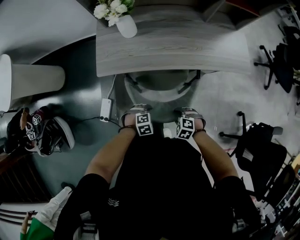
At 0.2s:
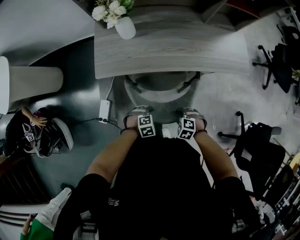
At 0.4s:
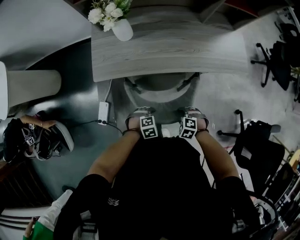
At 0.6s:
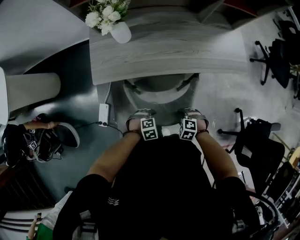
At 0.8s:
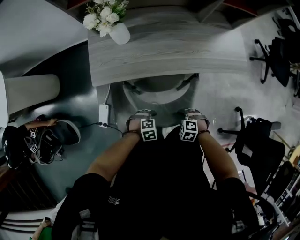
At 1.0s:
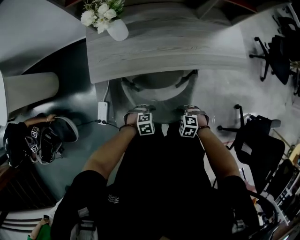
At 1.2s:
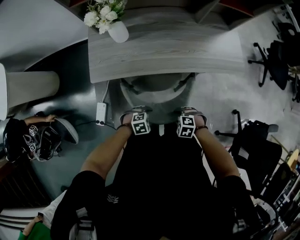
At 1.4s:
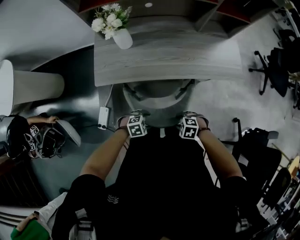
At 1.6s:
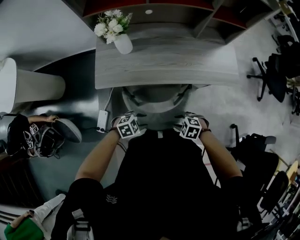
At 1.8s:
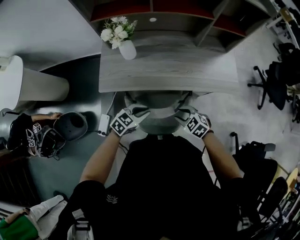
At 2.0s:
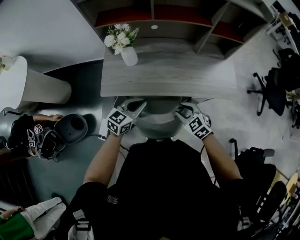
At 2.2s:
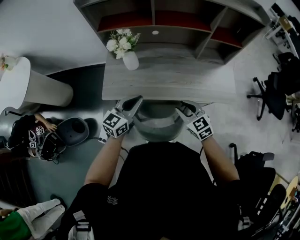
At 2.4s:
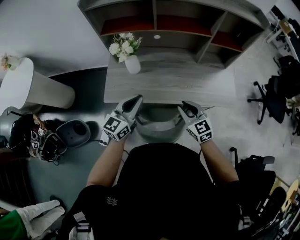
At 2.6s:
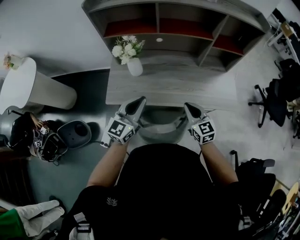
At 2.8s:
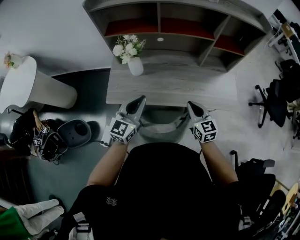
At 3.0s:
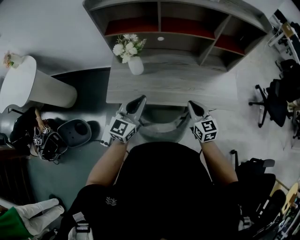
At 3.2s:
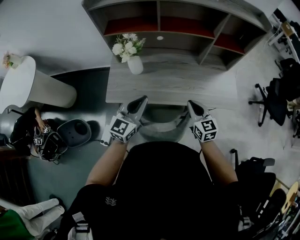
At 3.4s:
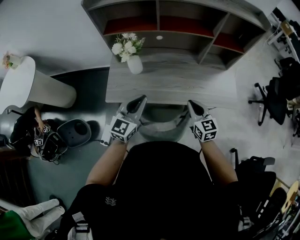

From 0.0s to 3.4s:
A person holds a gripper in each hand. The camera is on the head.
From 0.0s to 1.6s: Both grippers travel together upward, roughly 10 cm. The left gripper rotates approximately 20 degrees.
From 1.6s to 3.4s: The grippers both shift upward by about 25 cm. The left gripper points its fingers some 50 degrees further upward, and closes its fingers; the right gripper angles its fingers upward, by approximately 40 degrees, and closes.

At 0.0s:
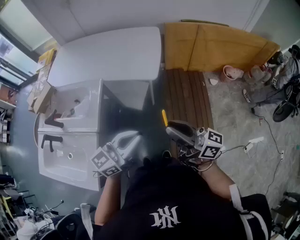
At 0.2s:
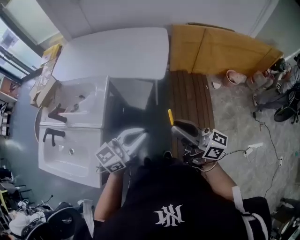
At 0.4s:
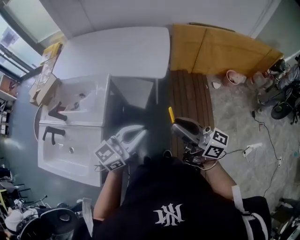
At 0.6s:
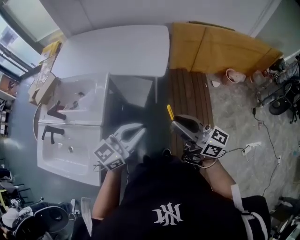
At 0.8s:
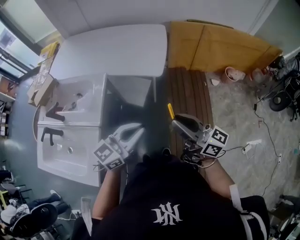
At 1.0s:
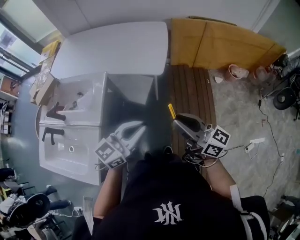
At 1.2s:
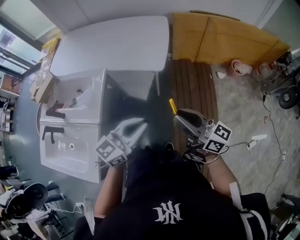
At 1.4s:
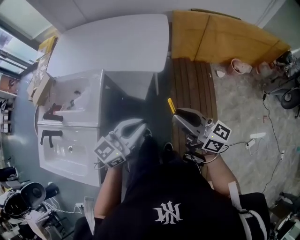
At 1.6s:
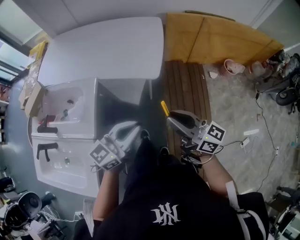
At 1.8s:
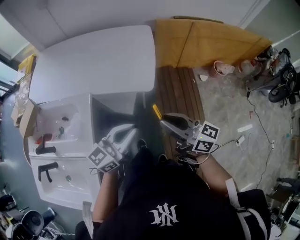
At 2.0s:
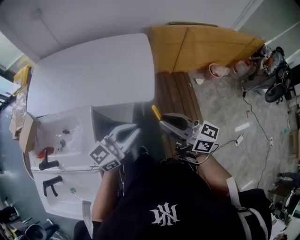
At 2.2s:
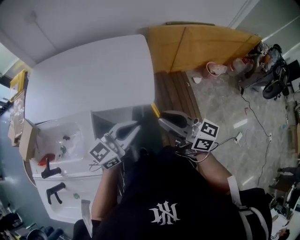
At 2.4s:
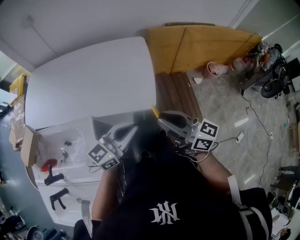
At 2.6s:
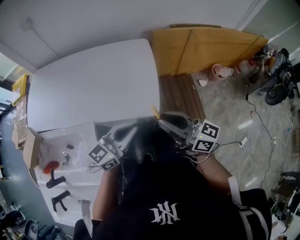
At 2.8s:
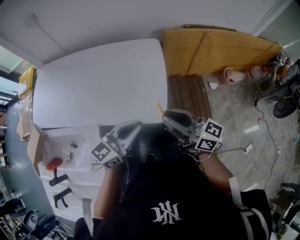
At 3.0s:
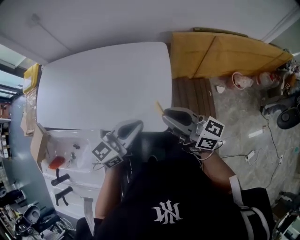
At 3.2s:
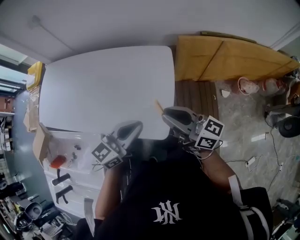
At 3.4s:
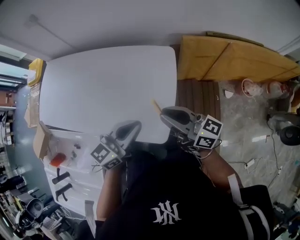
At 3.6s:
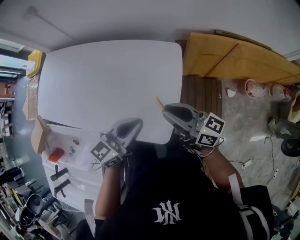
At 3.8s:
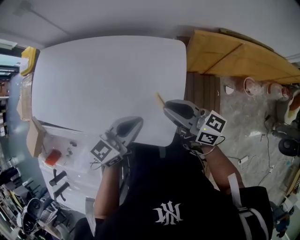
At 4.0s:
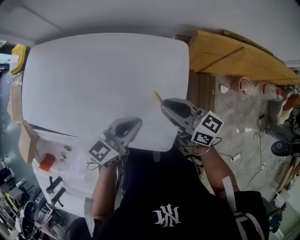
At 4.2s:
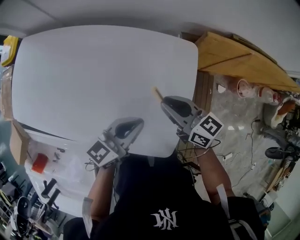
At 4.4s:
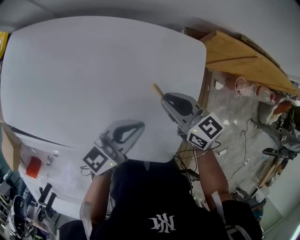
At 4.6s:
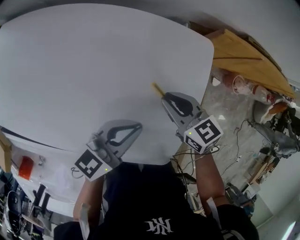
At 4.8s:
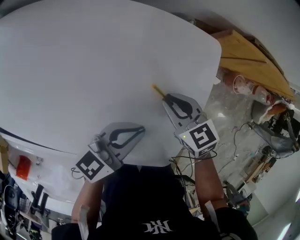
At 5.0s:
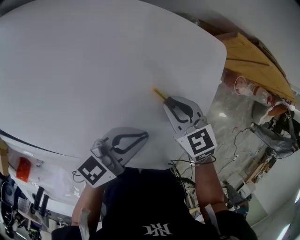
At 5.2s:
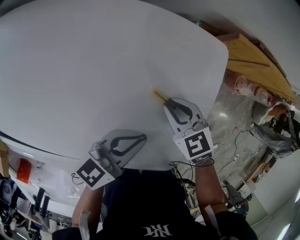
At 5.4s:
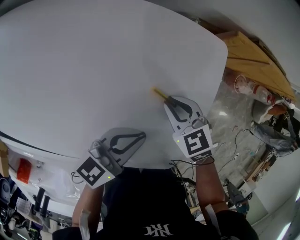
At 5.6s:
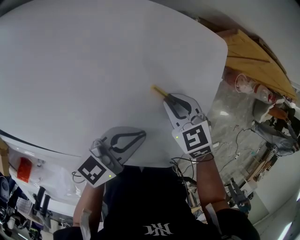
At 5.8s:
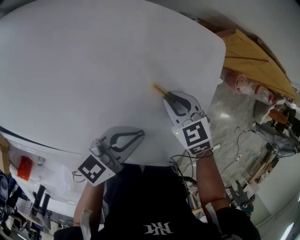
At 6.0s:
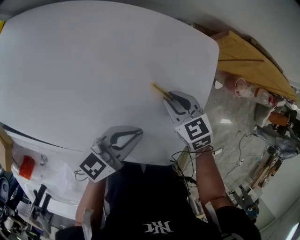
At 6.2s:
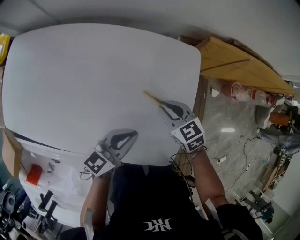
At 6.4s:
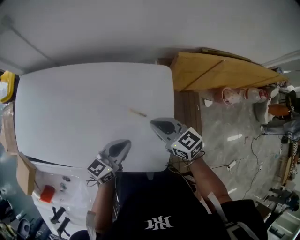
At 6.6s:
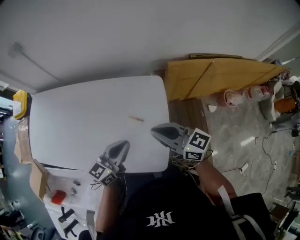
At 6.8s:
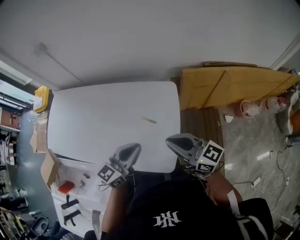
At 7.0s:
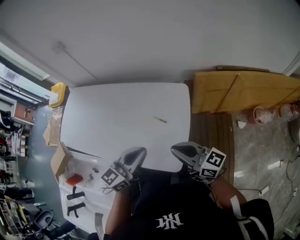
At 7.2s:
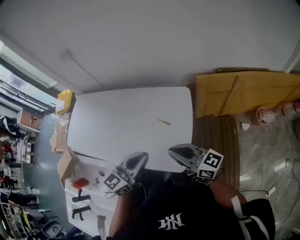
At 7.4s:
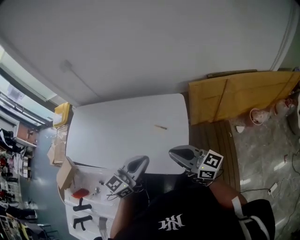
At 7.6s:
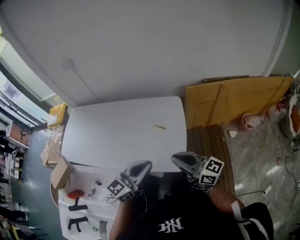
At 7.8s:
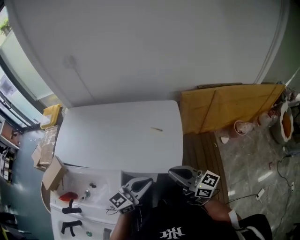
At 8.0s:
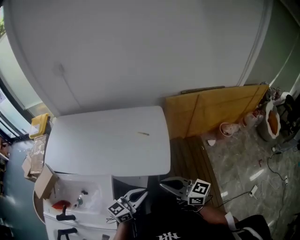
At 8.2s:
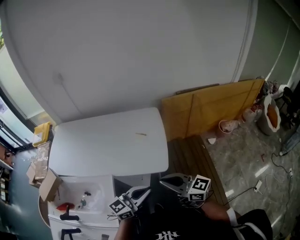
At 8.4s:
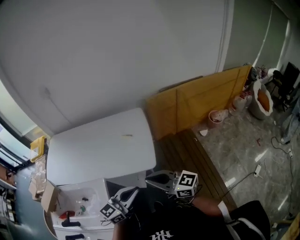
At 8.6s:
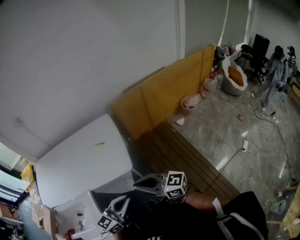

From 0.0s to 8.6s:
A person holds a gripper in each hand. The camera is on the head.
From 0.0s to 1.4s: The left gripper goes roughly 5 cm forward; the right gripper heads forward and downward, covering some 10 cm.
From 1.4s to 2.8s: The two grippers go roughly 35 cm forward.
From 2.8s to 4.4s: The two grippers go roughly 35 cm forward and downward. The right gripper tips its fingers downward by approximately 30 degrees.
From 4.4s to 5.8s: The left gripper heads downward, covering roughly 5 cm. Meanwhile the right gripper heads downward, covering roughly 10 cm, and changes its angle by roughly 30 degrees.
From 5.8s to 7.2s: The grippers both shift upward and backward by some 35 cm. The left gripper swivels about 20 degrees. Meanwhile the right gripper angles its fingers upward, by roughly 60 degrees.
From 7.2s to 8.6s: The two grippers go about 35 cm backward.

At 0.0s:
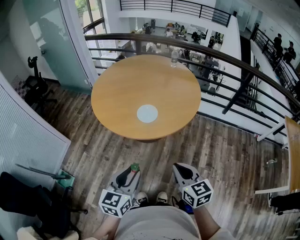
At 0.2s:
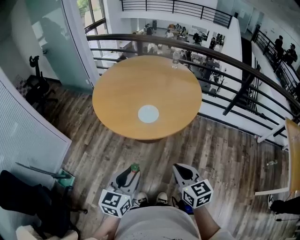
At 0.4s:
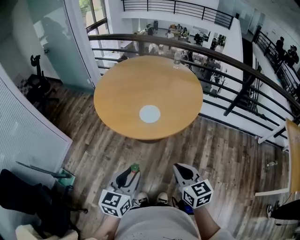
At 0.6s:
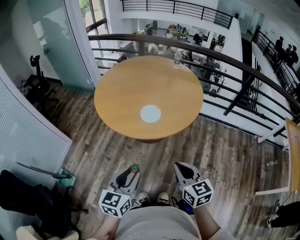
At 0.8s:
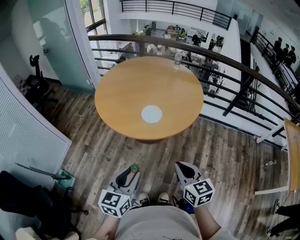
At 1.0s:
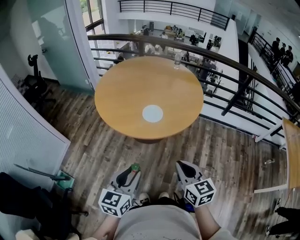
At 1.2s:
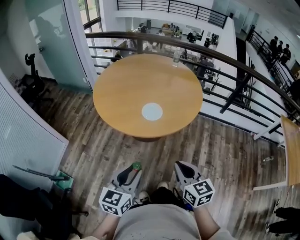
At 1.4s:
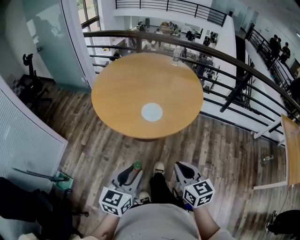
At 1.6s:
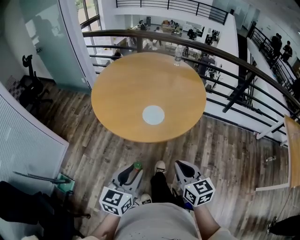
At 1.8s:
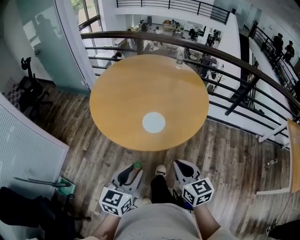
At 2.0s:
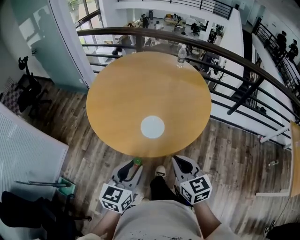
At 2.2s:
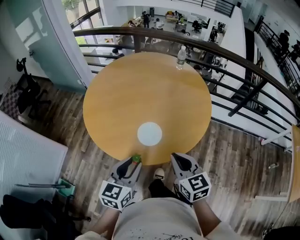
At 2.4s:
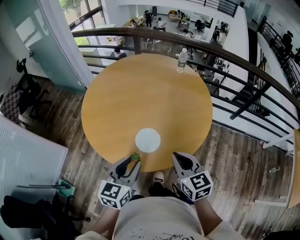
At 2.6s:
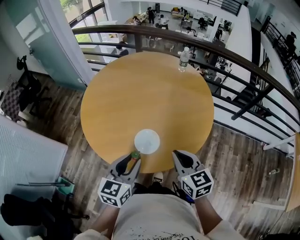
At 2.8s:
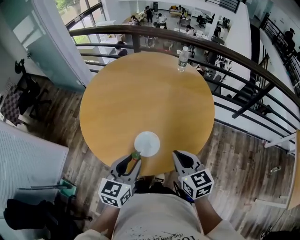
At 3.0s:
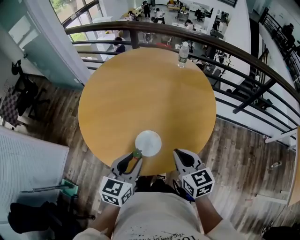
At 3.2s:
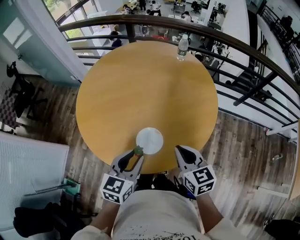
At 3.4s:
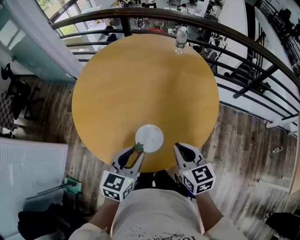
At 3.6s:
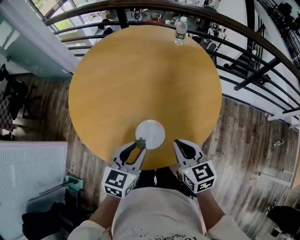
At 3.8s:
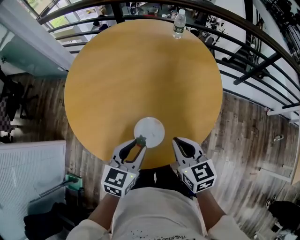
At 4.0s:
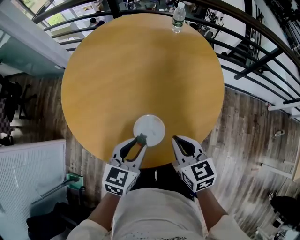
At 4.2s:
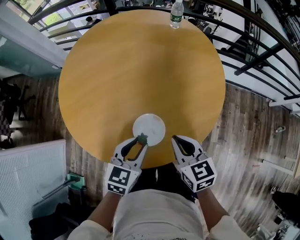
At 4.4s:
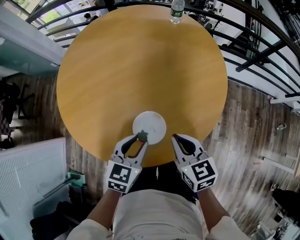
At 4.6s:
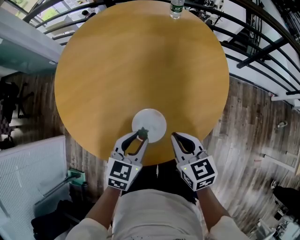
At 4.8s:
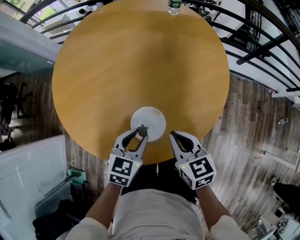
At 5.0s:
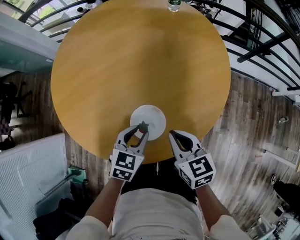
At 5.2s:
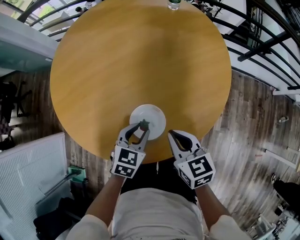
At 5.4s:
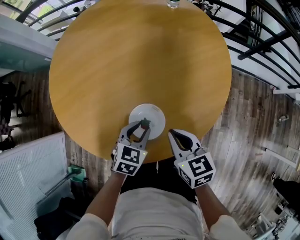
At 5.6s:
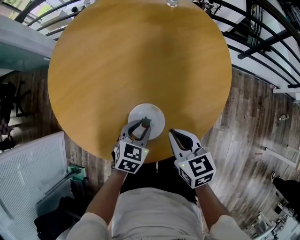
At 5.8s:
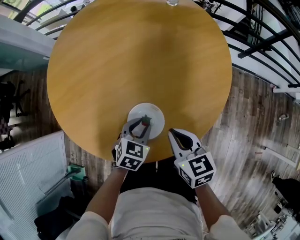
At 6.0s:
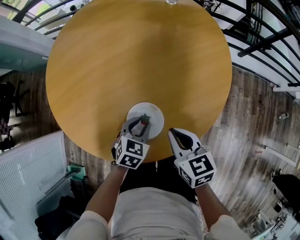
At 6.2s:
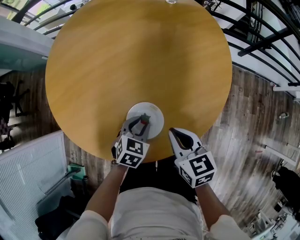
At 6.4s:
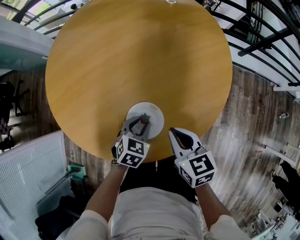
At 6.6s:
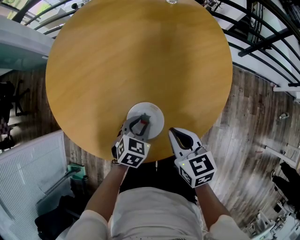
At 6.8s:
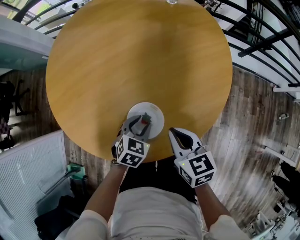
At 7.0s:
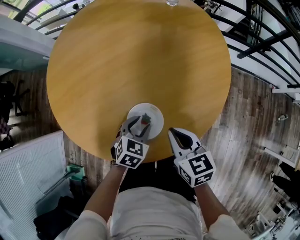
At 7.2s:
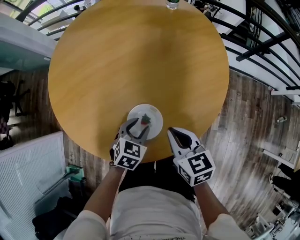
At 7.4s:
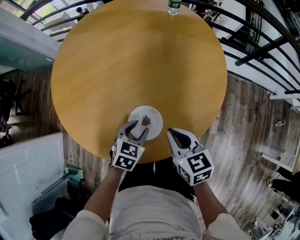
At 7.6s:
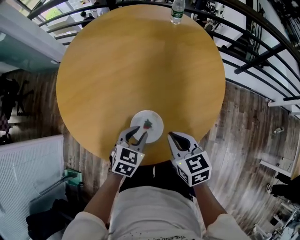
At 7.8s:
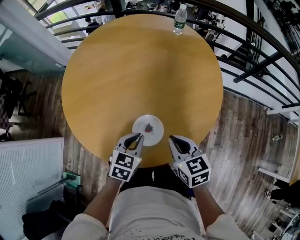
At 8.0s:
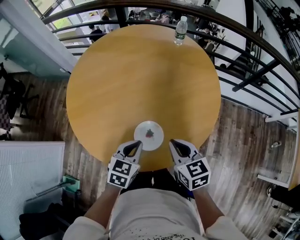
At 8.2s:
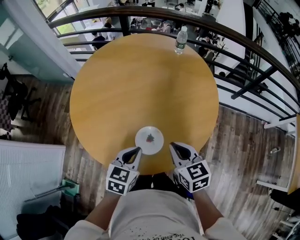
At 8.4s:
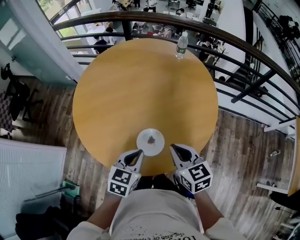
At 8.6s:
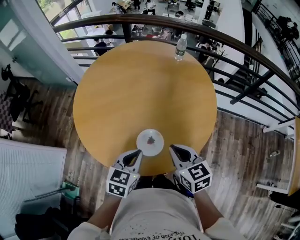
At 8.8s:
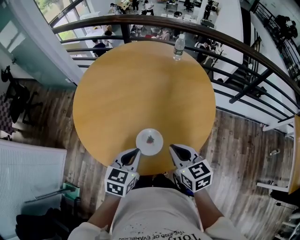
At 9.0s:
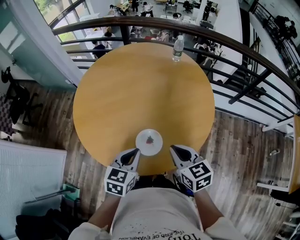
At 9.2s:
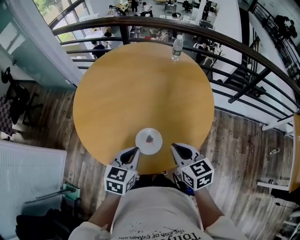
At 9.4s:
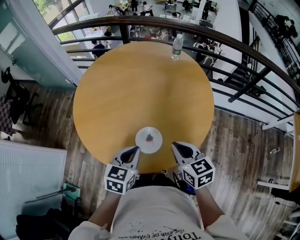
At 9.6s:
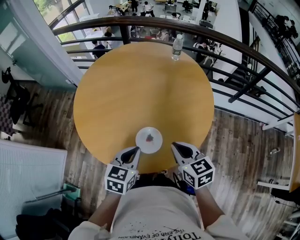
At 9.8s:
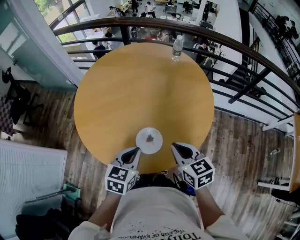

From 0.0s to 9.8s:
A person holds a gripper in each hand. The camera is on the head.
From 0.0s to 1.4s: The two grippers go about 5 cm to the left.
From 1.4s to 2.8s: The grippers both shift forward by about 35 cm.
From 2.8s to 4.2s: Both grippers travel together downward and forward, some 15 cm. The left gripper changes its angle by approximately 20 degrees.
From 4.2s to 5.6s: The left gripper travels downward by some 10 cm, while the right gripper travels downward by approximately 5 cm.
From 5.6s to 7.0s: The grippers make only small movements.
From 7.0s to 8.4s: The left gripper is displaced upward by some 20 cm, turns by roughly 20 degrees, and closes its fingers. The right gripper heads upward, covering approximately 10 cm.
From 8.4s to 9.8s: The grippers make only small movements.

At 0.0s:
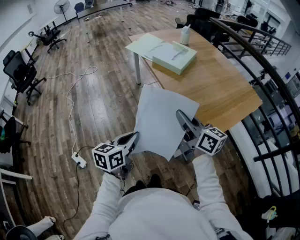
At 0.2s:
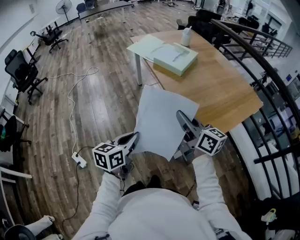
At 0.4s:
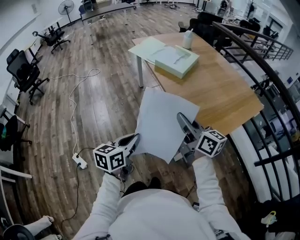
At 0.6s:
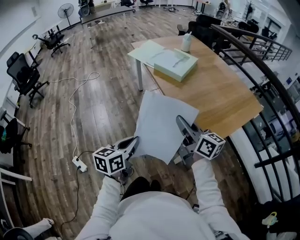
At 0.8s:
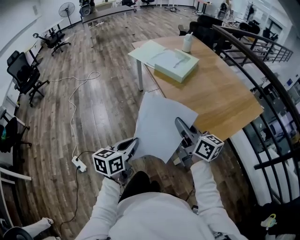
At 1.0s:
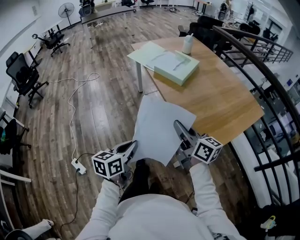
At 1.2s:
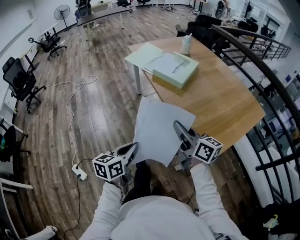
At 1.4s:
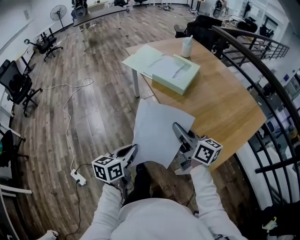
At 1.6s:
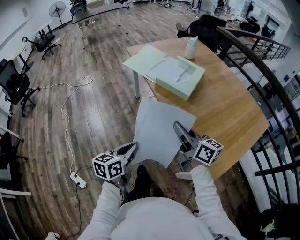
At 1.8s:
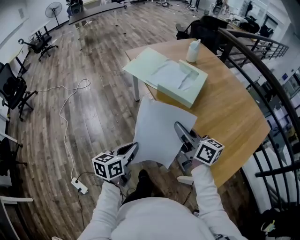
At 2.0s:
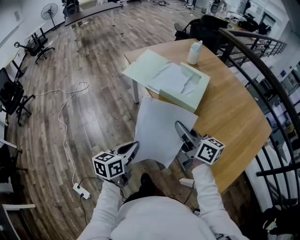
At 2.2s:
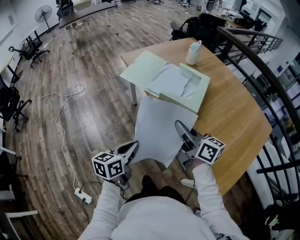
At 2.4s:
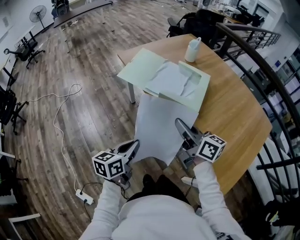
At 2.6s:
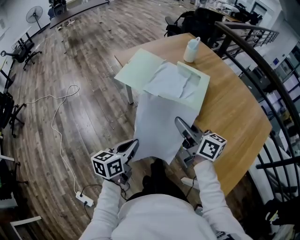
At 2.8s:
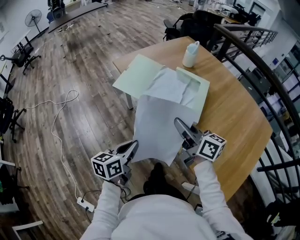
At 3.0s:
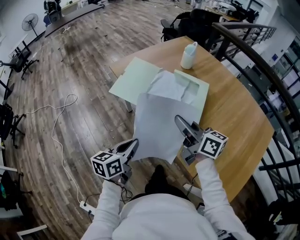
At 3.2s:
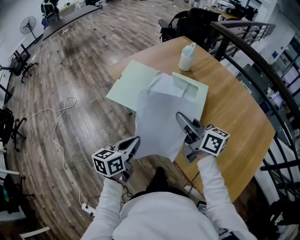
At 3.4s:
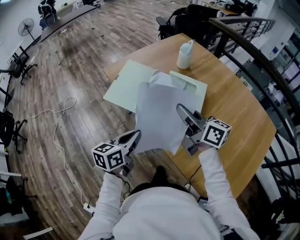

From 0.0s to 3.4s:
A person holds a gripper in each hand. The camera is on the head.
From 0.0s to 1.6s: The two grippers go approximately 20 cm forward.
From 1.6s to 3.4s: Both grippers move forward, about 35 cm.
